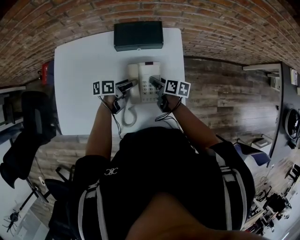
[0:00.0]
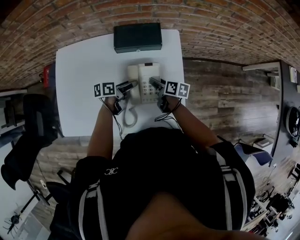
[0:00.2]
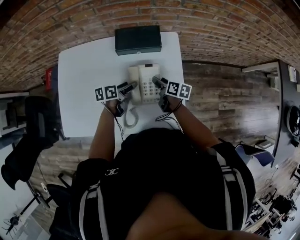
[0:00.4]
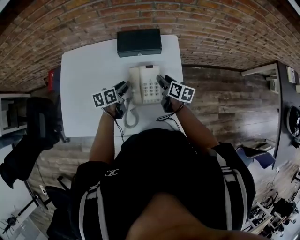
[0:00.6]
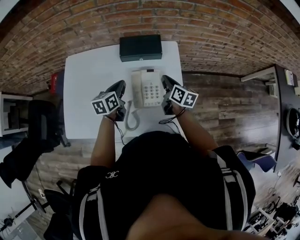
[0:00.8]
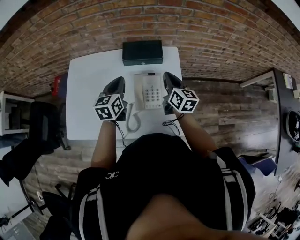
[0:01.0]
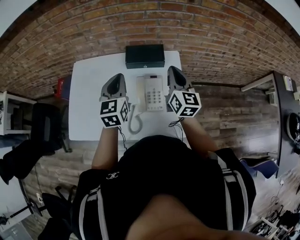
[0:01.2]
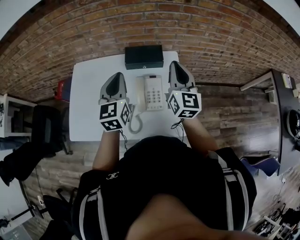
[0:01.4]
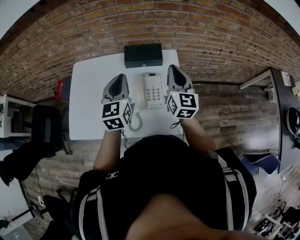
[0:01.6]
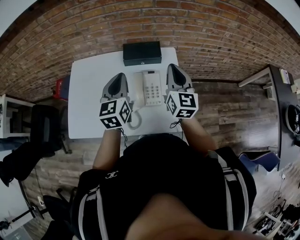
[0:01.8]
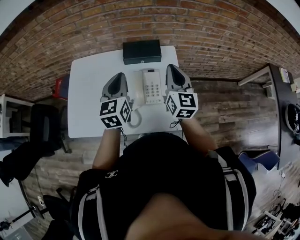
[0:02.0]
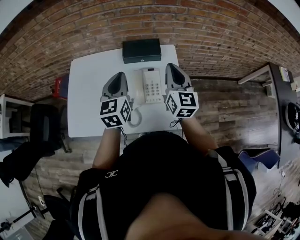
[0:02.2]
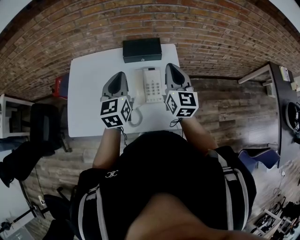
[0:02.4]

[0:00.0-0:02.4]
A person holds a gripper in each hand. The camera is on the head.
0:00.0 to 0:01.2: The grippers both shift upward by about 30 cm. The left gripper rotates about 70 degrees, and closes. Meanwhile the right gripper points its fingers approximately 30 degrees further upward, and closes up.
0:01.2 to 0:02.4: The right gripper ends up about 5 cm from where it was.

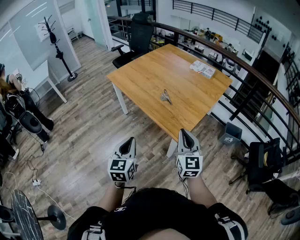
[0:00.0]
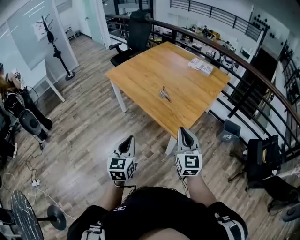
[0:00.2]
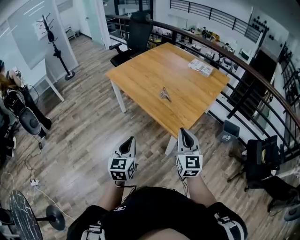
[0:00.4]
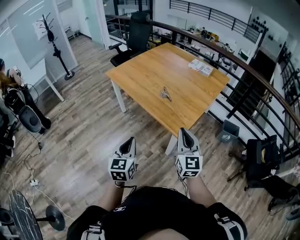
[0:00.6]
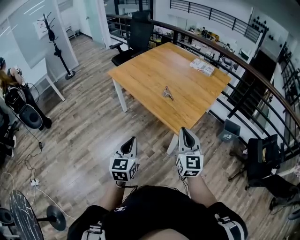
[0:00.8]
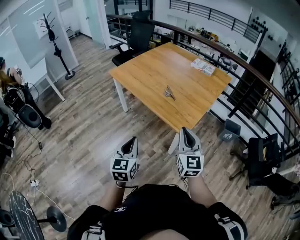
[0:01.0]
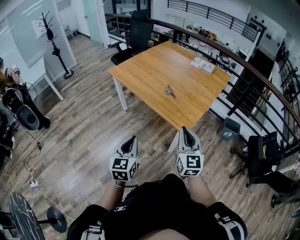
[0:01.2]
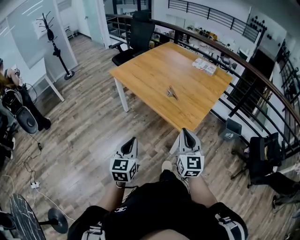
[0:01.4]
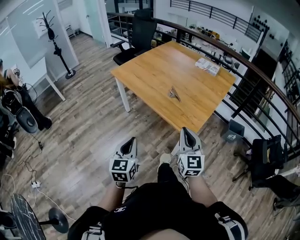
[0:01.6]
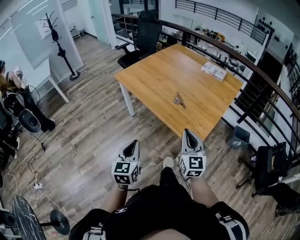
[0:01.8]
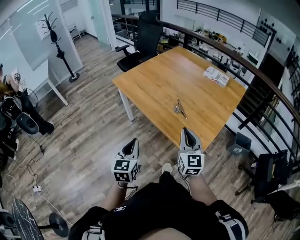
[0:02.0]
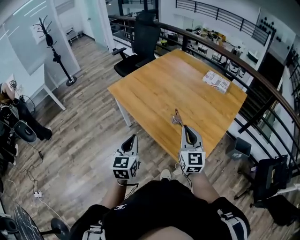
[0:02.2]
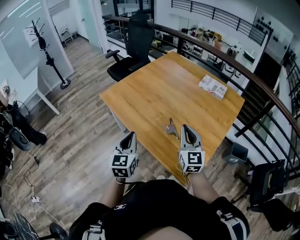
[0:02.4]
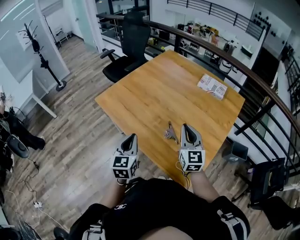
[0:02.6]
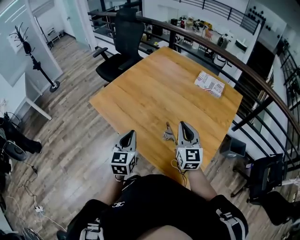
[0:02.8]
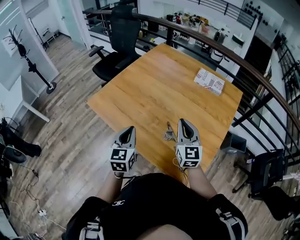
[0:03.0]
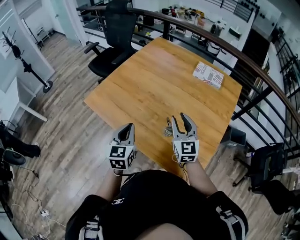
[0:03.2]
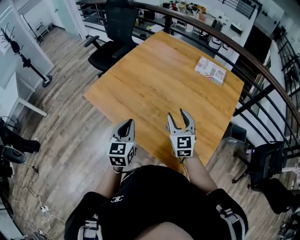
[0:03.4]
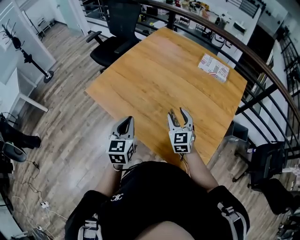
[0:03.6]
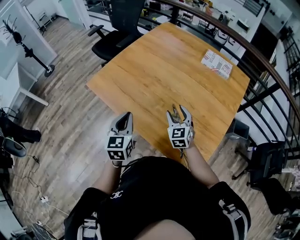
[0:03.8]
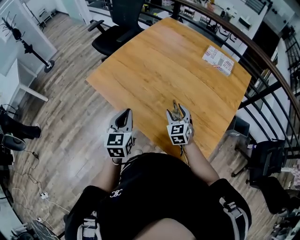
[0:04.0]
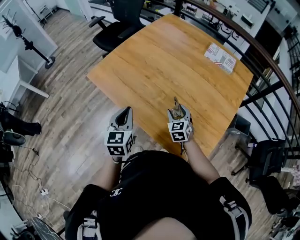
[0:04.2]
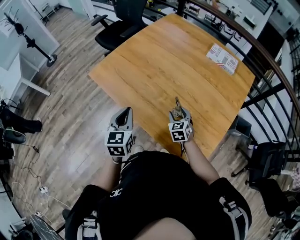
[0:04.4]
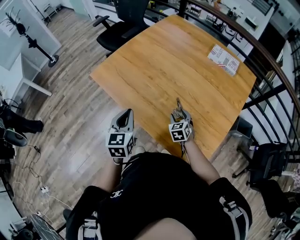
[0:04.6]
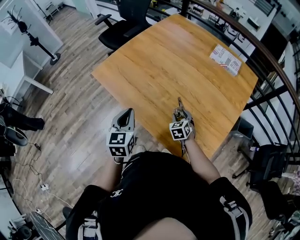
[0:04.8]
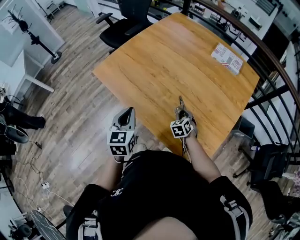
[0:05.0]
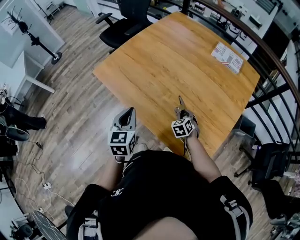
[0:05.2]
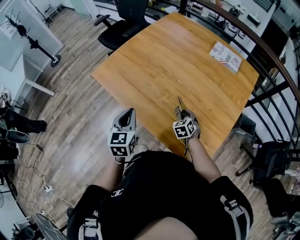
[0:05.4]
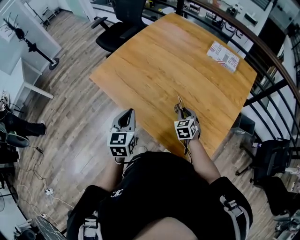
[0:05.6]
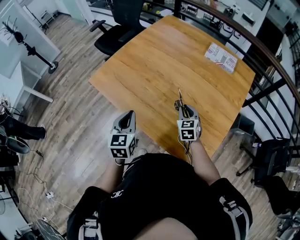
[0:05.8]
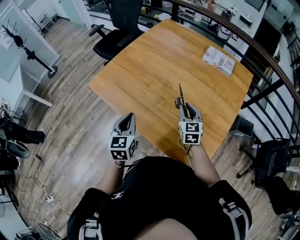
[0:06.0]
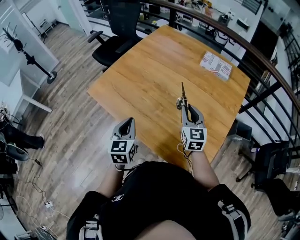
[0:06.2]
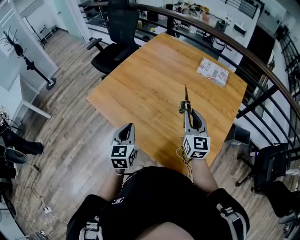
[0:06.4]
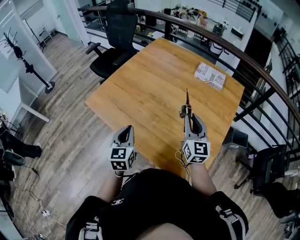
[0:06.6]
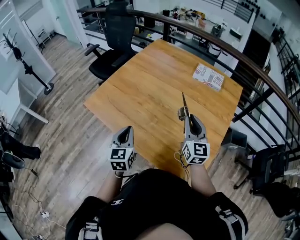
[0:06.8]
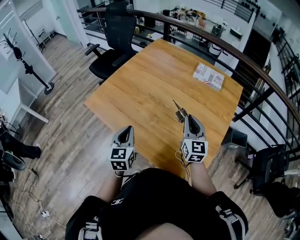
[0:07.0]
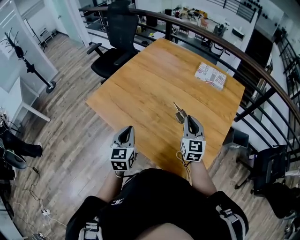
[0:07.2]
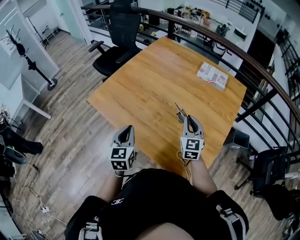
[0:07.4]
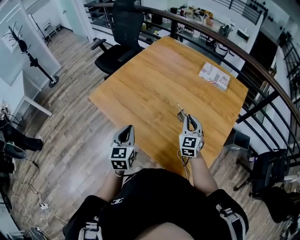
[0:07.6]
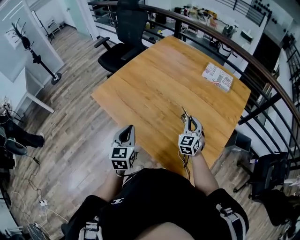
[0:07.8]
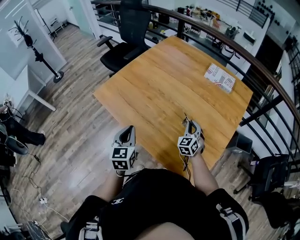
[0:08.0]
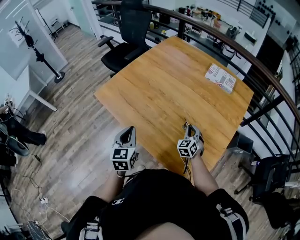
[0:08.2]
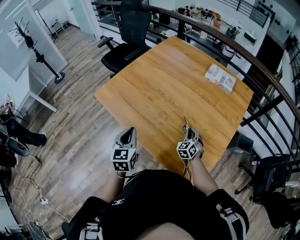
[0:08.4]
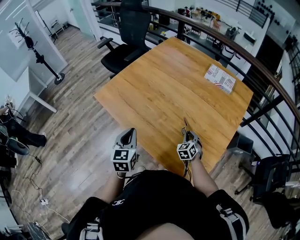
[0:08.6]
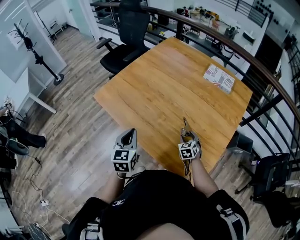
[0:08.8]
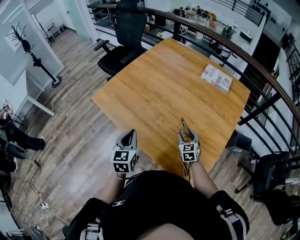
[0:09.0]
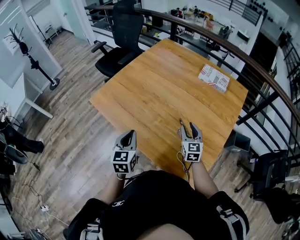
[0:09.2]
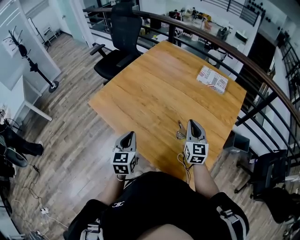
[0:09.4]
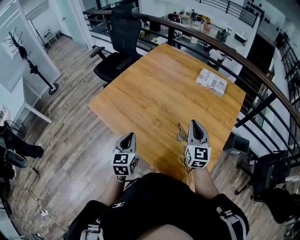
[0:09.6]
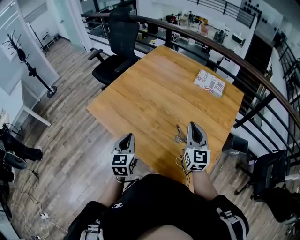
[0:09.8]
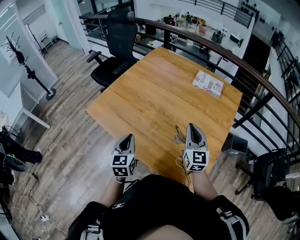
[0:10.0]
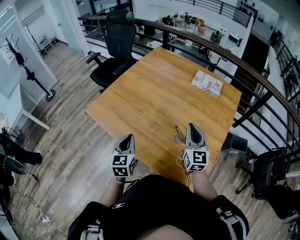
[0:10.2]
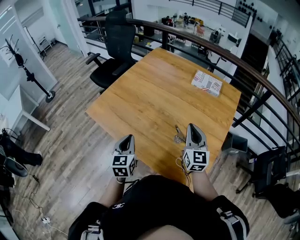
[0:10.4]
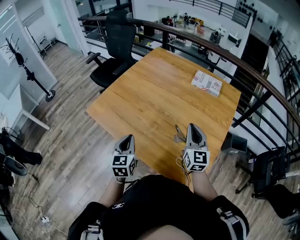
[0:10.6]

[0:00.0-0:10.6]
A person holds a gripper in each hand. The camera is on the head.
0:00.0 to 0:01.6: The grippers both shift to the left by approximately 10 cm.
0:01.6 to 0:03.0: Both grippers are carried forward, roughly 50 cm.
0:03.0 to 0:04.6: The right gripper goes roughly 25 cm downward, tilts its fingers about 40 degrees downward, and opens up. The left gripper shifts about 5 cm downward.
0:04.6 to 0:06.0: The right gripper moves upward, some 15 cm, changes its angle by about 20 degrees, and closes up.
0:06.0 to 0:07.6: The right gripper travels upward and back again, approximately 10 cm each way.
0:07.6 to 0:09.0: The right gripper goes roughly 15 cm downward, turns by some 20 degrees, and opens up.
0:09.0 to 0:10.6: The right gripper travels upward by roughly 25 cm, angles its fingers upward, by approximately 30 degrees, and closes its fingers.

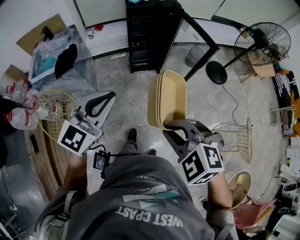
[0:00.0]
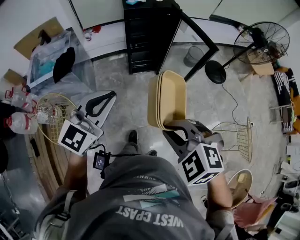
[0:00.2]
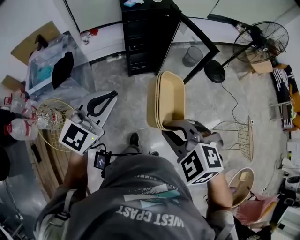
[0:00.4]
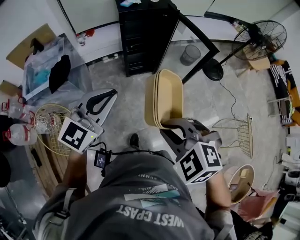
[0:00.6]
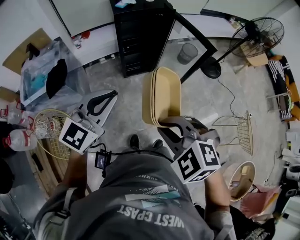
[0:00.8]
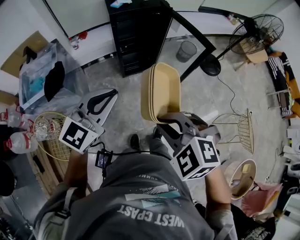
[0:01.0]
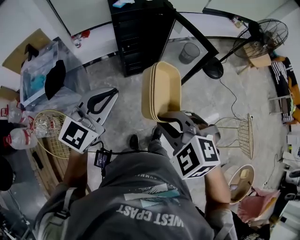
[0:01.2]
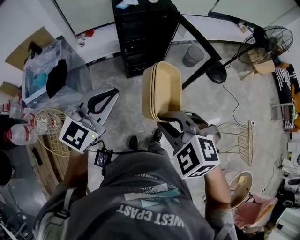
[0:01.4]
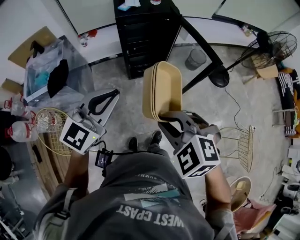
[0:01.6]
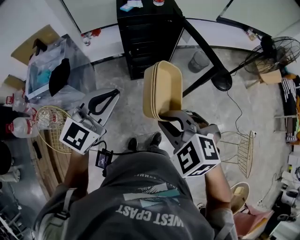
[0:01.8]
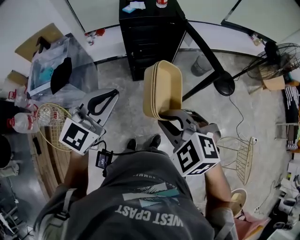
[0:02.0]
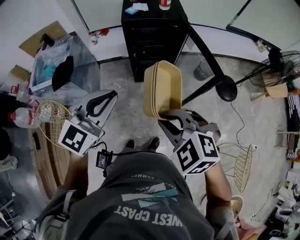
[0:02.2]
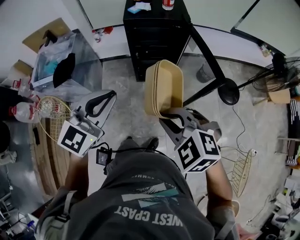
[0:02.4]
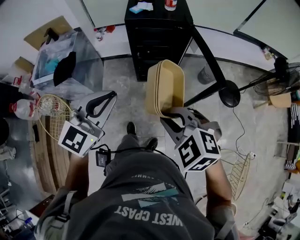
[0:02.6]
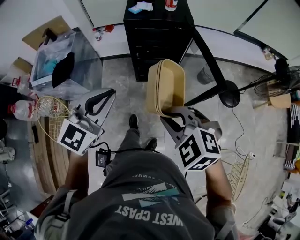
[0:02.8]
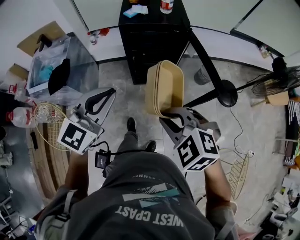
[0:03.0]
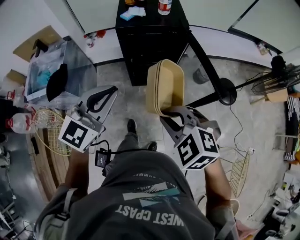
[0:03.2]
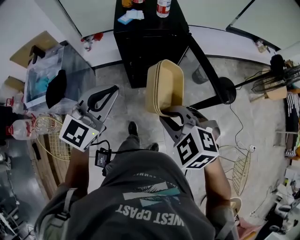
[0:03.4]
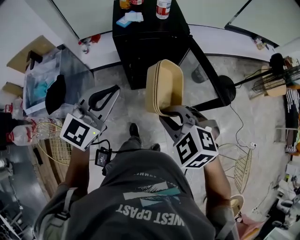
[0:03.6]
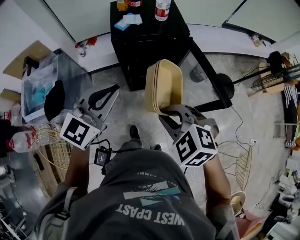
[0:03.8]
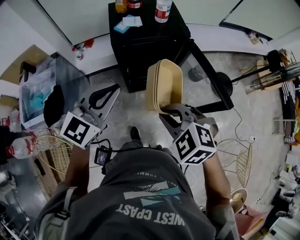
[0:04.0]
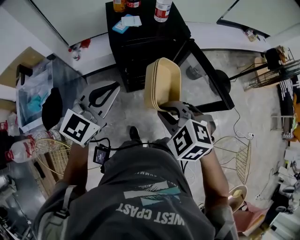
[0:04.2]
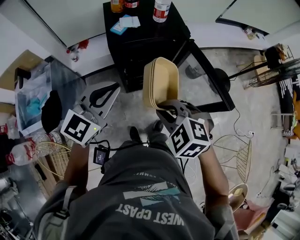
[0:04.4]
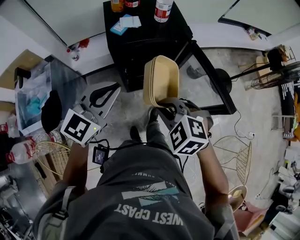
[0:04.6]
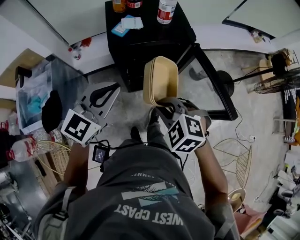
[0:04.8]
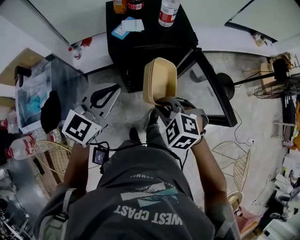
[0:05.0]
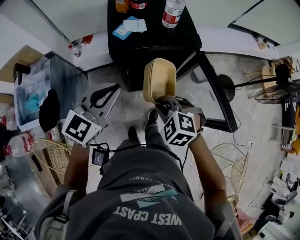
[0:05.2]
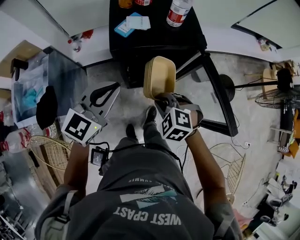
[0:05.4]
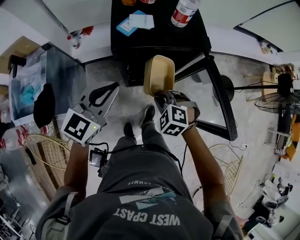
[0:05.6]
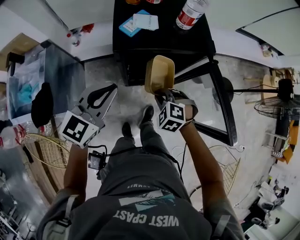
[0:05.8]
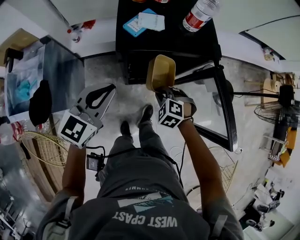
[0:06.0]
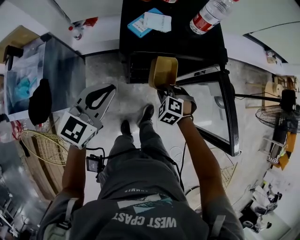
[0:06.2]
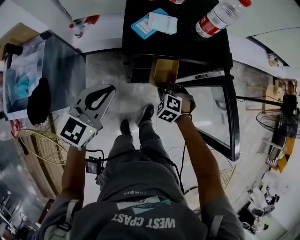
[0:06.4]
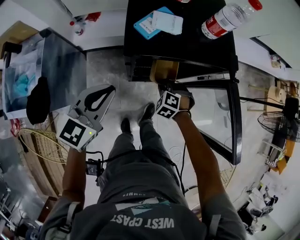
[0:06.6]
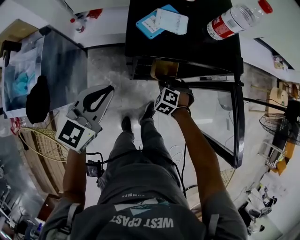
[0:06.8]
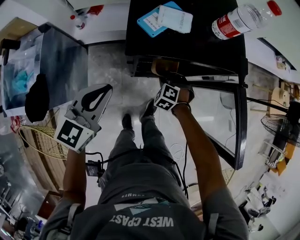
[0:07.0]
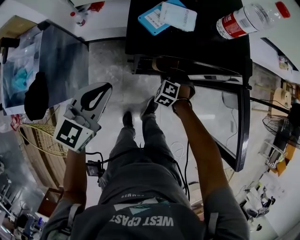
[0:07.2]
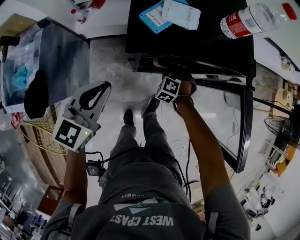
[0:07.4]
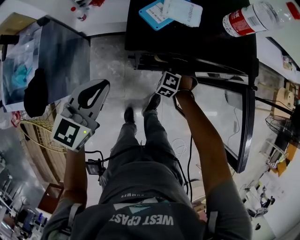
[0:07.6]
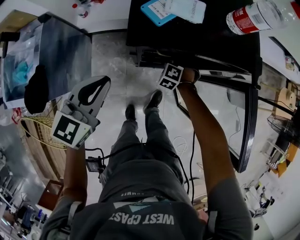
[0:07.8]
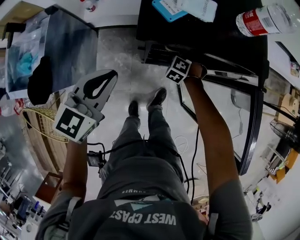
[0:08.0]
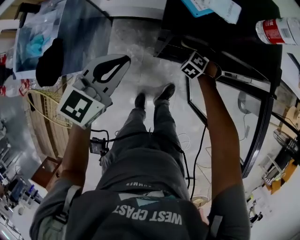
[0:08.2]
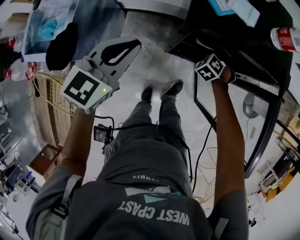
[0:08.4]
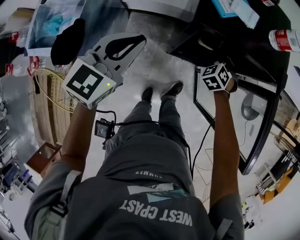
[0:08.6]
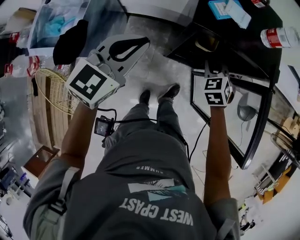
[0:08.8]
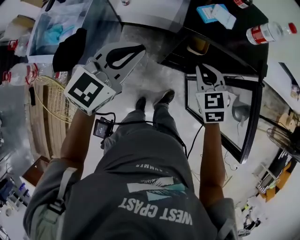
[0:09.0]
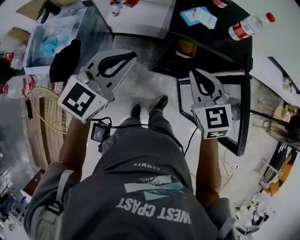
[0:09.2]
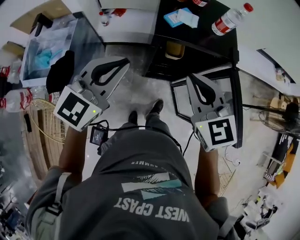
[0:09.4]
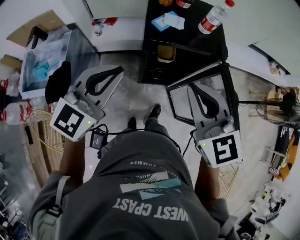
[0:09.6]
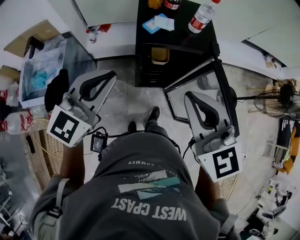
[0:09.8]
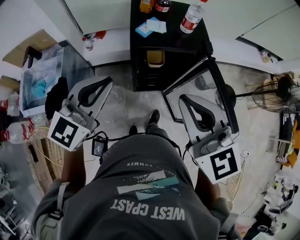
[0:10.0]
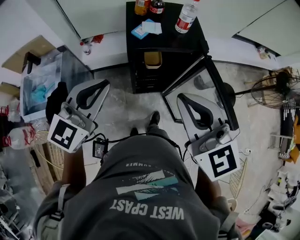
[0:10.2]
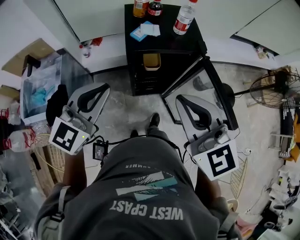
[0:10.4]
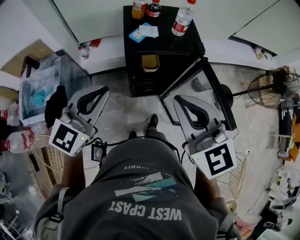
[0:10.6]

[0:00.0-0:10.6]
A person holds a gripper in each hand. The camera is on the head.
0:00.0 to 0:01.6: The grippers both shift forward by approximately 15 cm.
0:01.6 to 0:03.0: The right gripper shifts roughly 15 cm forward and to the right; the left gripper travels forward by some 10 cm.
0:03.0 to 0:04.6: Both grippers travel together forward, about 20 cm.
0:04.6 to 0:06.0: The right gripper heads downward and forward, covering approximately 25 cm. Meanwhile the left gripper moves downward and forward, some 10 cm.
0:06.0 to 0:07.6: The left gripper is displaced downward and to the left by some 10 cm, while the right gripper heads downward and forward, covering about 20 cm.
0:07.6 to 0:09.0: The left gripper is displaced upward by roughly 10 cm; the right gripper shifts roughly 25 cm upward, and rotates some 40 degrees.
0:09.0 to 0:10.6: The left gripper travels upward and backward by about 10 cm. Meanwhile the right gripper travels upward and backward by approximately 30 cm, and swivels some 30 degrees.
